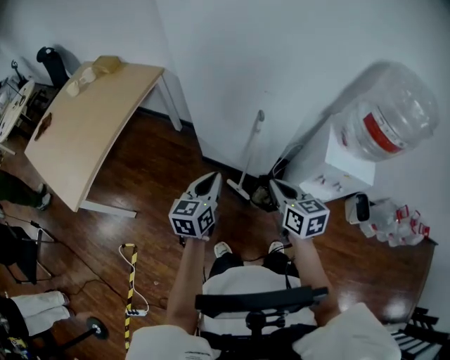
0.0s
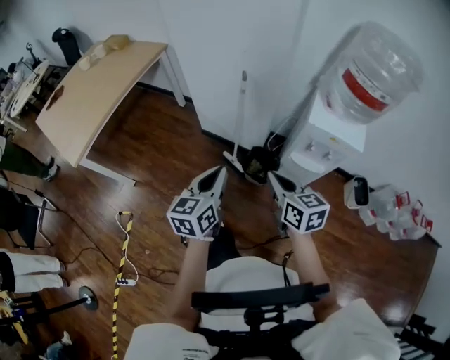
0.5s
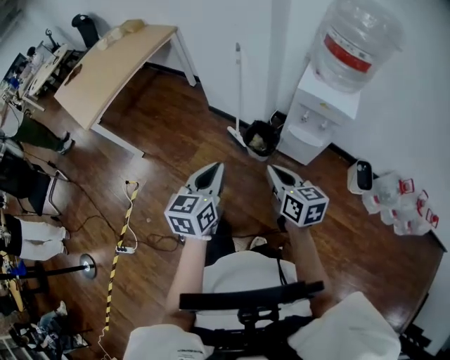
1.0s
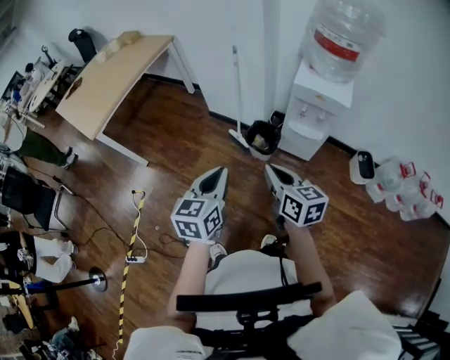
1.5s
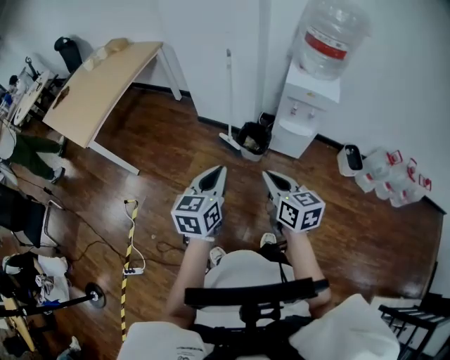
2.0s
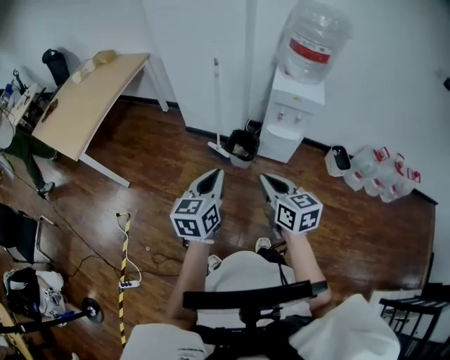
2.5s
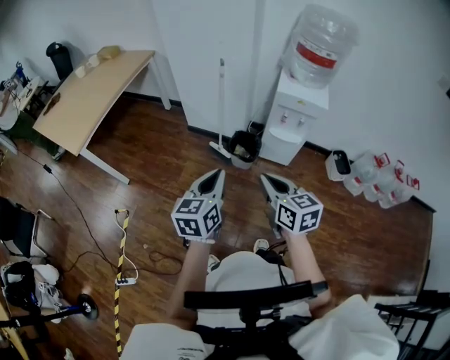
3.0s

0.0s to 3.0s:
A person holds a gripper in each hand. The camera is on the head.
0.0s to 1.5s: Both grippers move backward, about 40 cm.
1.5s to 3.0s: The left gripper goes approximately 5 cm to the left, while the right gripper moves backward and to the left, approximately 10 cm.

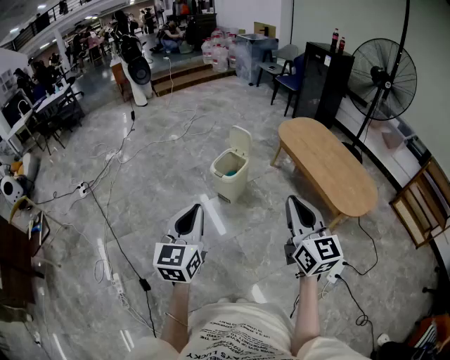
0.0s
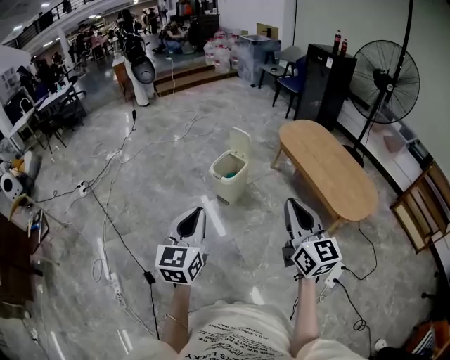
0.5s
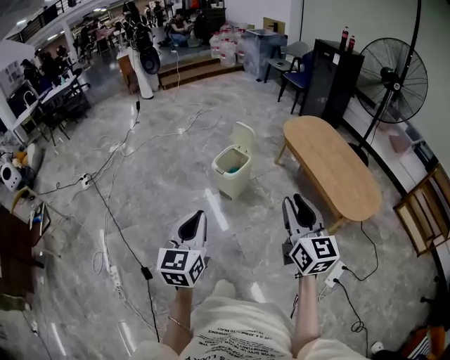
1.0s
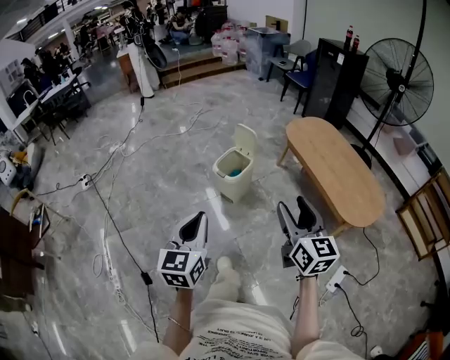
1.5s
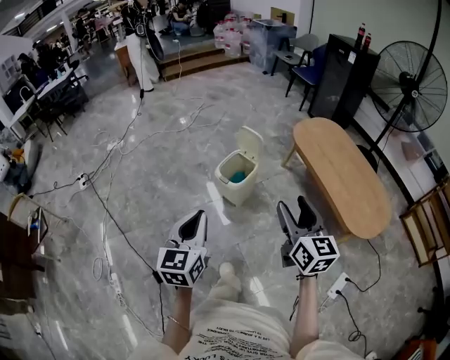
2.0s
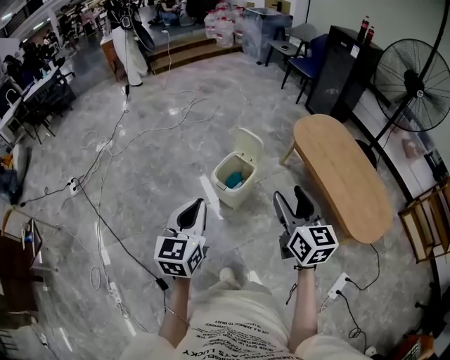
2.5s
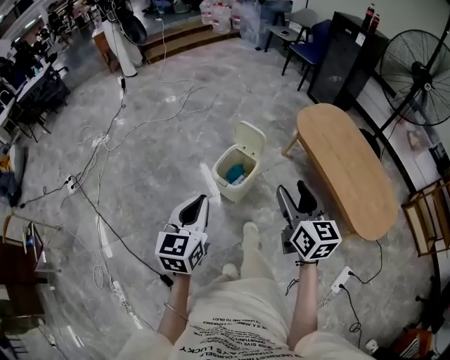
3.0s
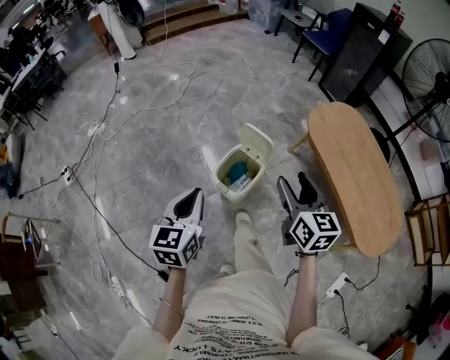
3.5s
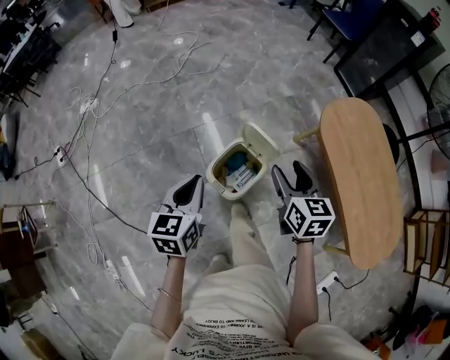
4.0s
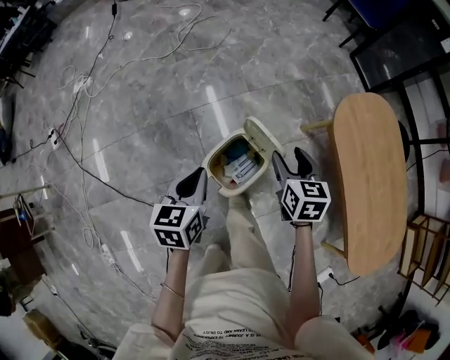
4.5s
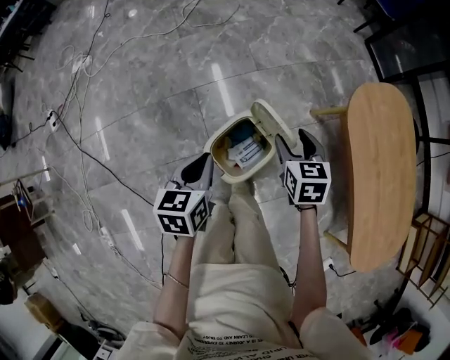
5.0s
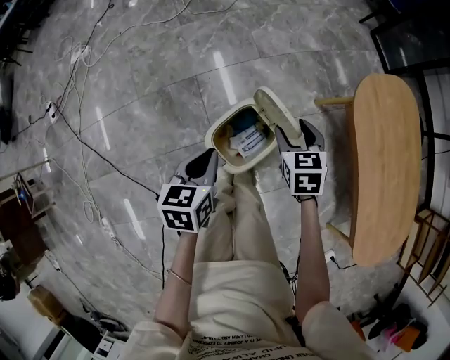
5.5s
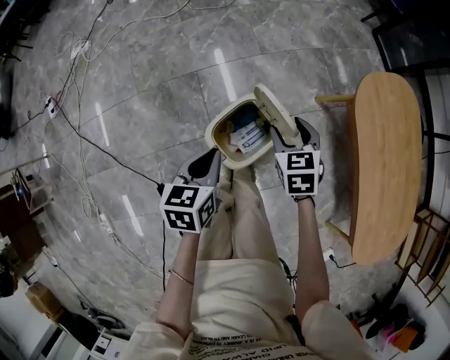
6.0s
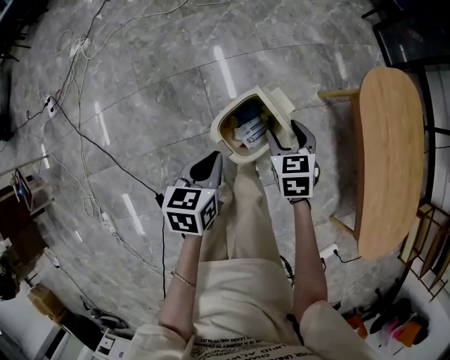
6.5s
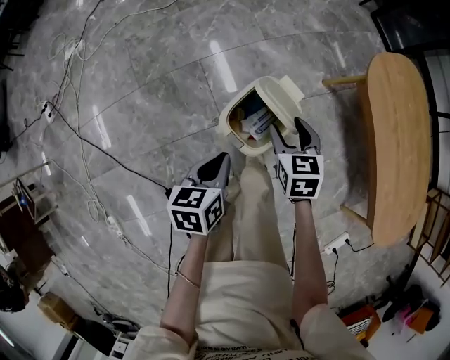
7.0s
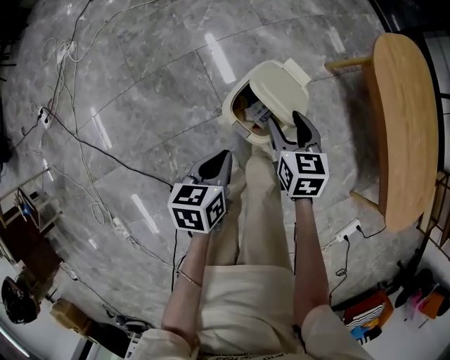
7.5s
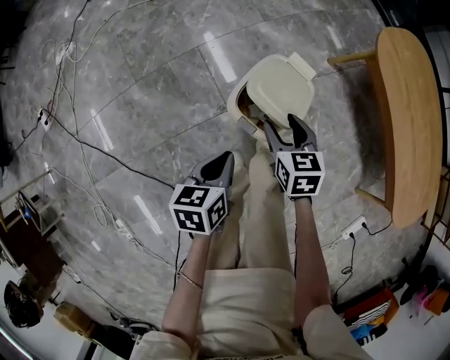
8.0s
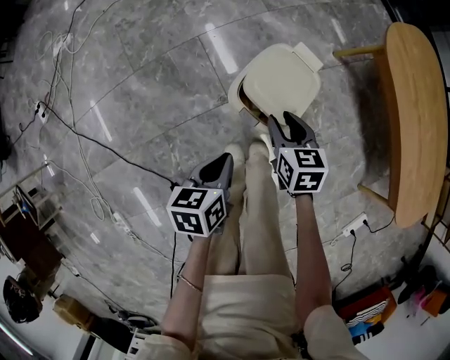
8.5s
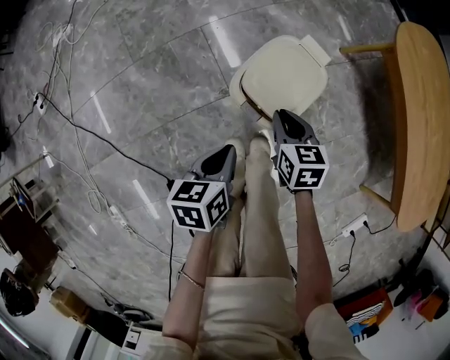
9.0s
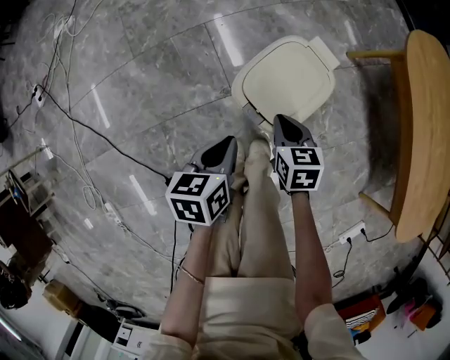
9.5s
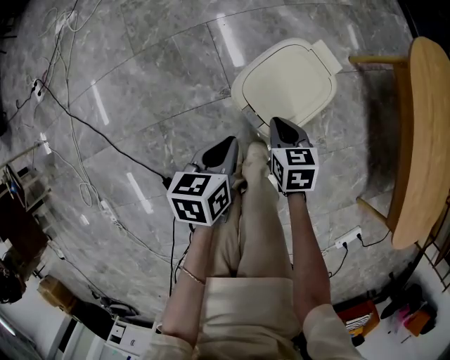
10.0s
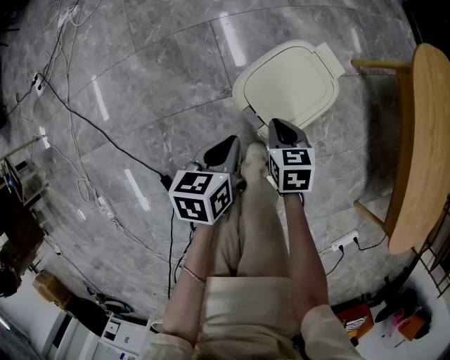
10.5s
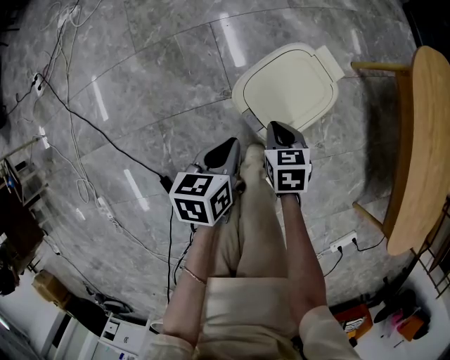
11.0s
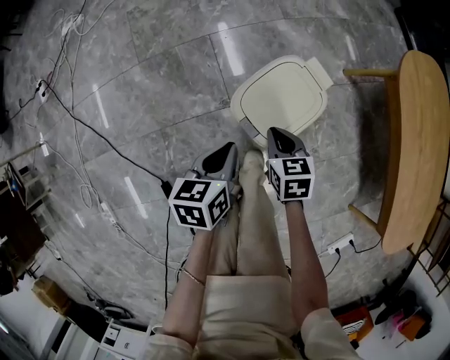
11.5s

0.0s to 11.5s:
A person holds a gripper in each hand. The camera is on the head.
0.0s to 2.0s: The right gripper heads forward, covering about 15 cm, and opens, while the left gripper shifts about 15 cm forward and downward.
2.0s to 4.0s: The two grippers travel together, forward, about 40 cm. The left gripper rotates about 20 degrees; the right gripper changes its angle by some 20 degrees.
4.0s to 6.0s: The left gripper is displaced downward by roughly 15 cm, while the right gripper moves downward and forward, some 20 cm, and swivels about 30 degrees.
6.0s to 7.5s: The left gripper goes roughly 10 cm backward and downward. Meanwhile the right gripper shifts approximately 10 cm backward and to the left, and swivels approximately 20 degrees.
7.5s to 9.5s: The left gripper shifts roughly 10 cm downward; the right gripper is displaced downward and backward by approximately 15 cm, and closes its fingers.
9.5s to 11.5s: The grippers stay close to where they were, moving slightly.

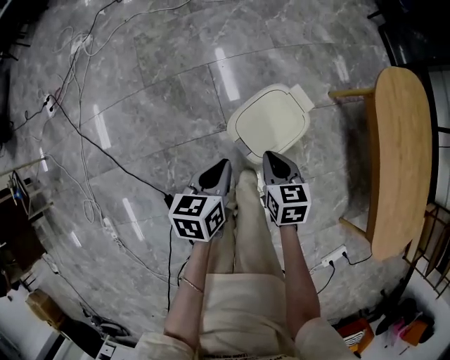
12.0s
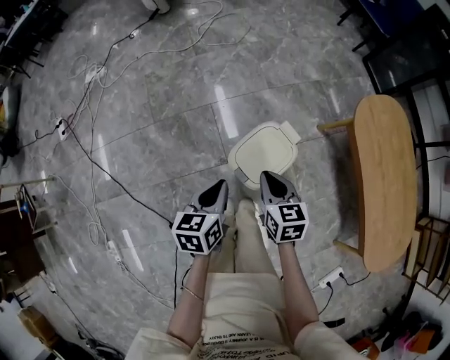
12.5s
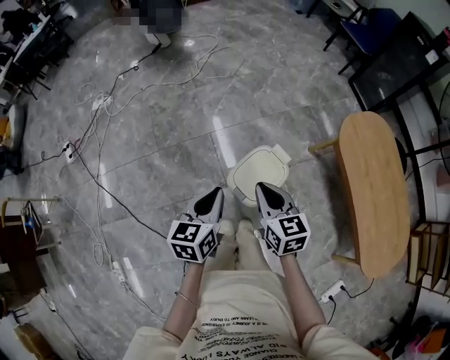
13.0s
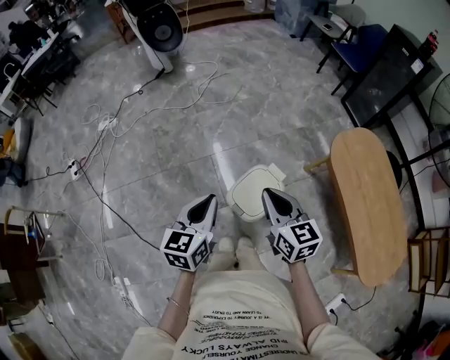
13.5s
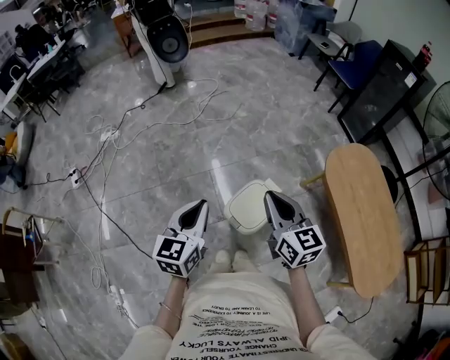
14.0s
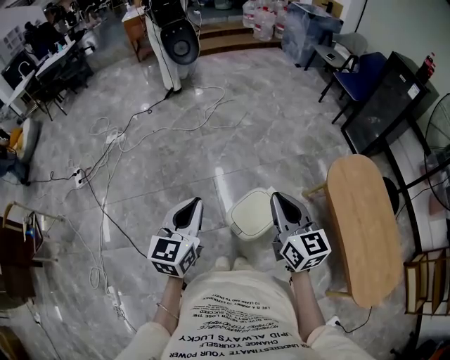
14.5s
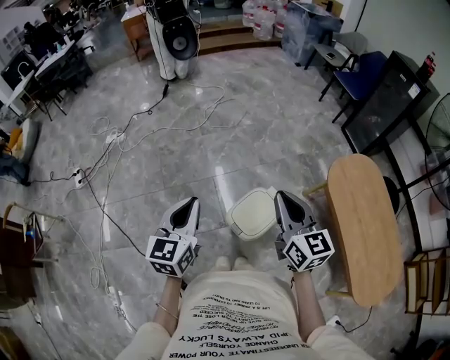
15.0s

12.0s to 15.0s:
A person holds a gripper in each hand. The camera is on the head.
12.0s to 13.5s: Both grippers move upward, roughly 25 cm. The right gripper changes its angle by some 30 degrees. The left gripper rotates some 30 degrees.
13.5s to 15.0s: The two grippers go about 10 cm upward.

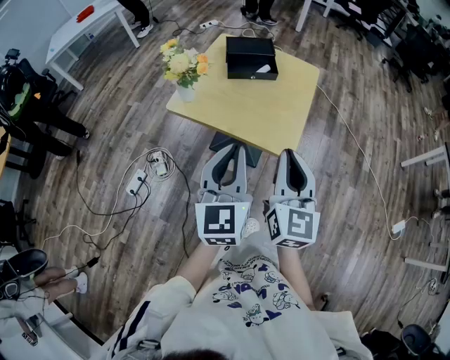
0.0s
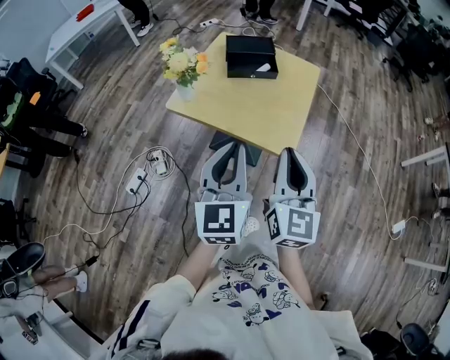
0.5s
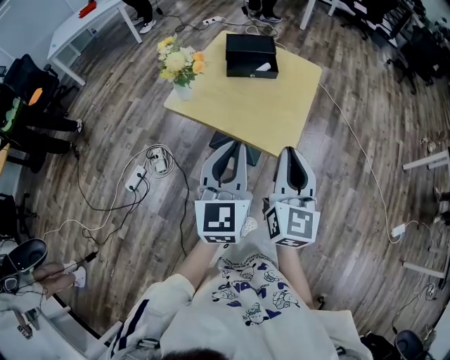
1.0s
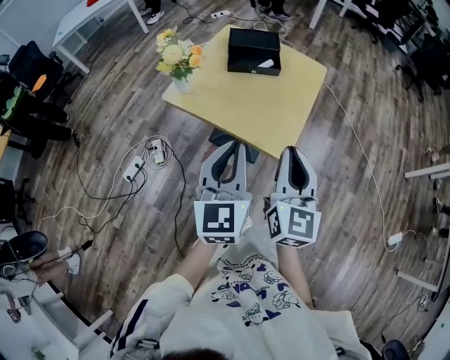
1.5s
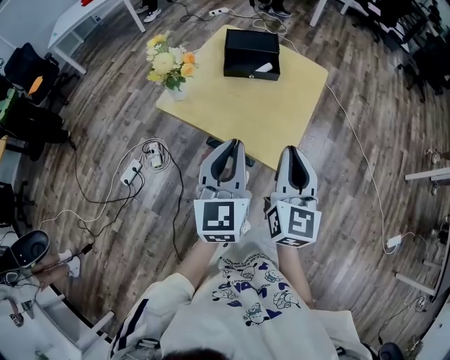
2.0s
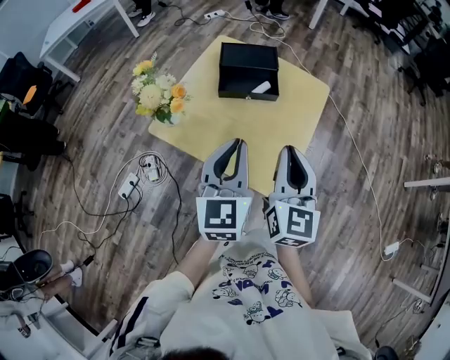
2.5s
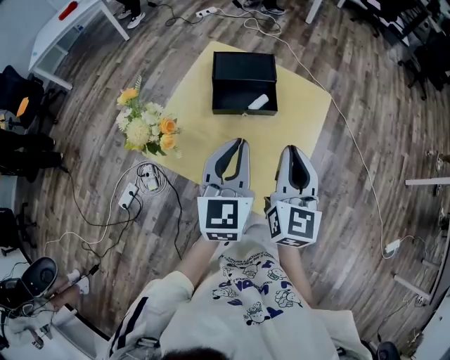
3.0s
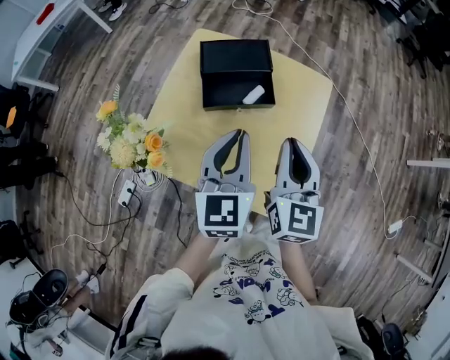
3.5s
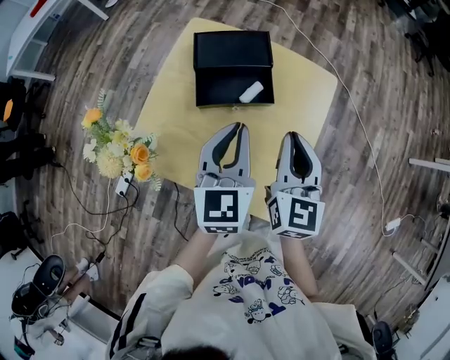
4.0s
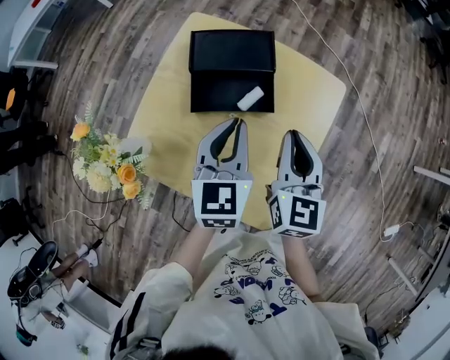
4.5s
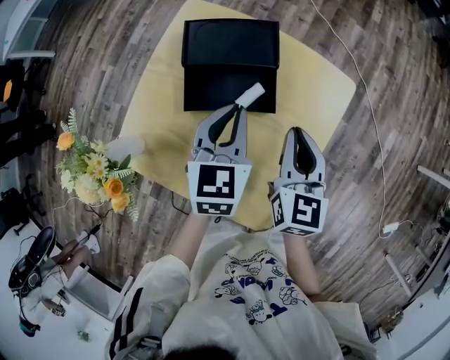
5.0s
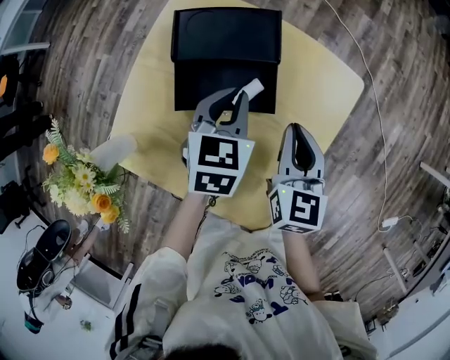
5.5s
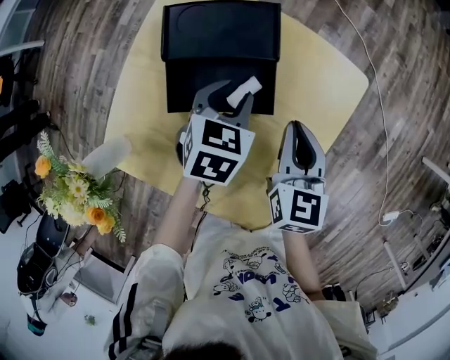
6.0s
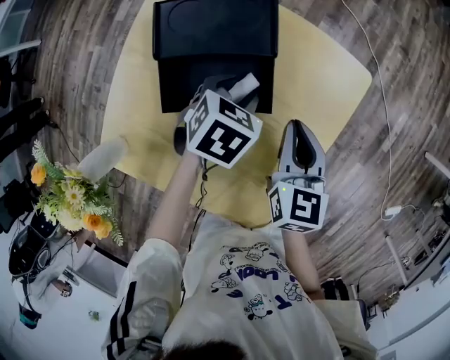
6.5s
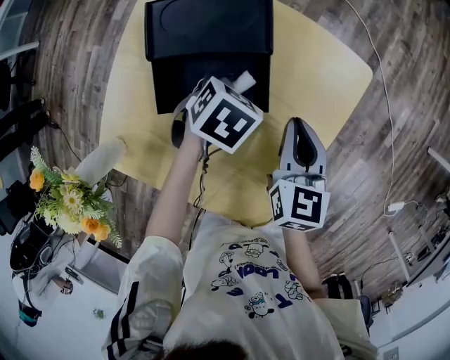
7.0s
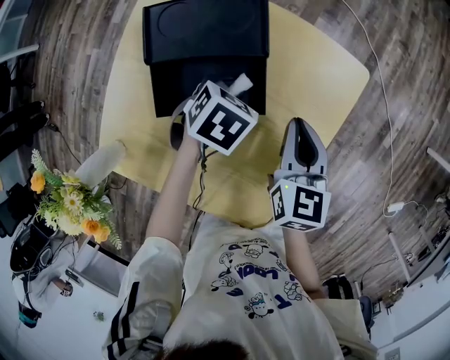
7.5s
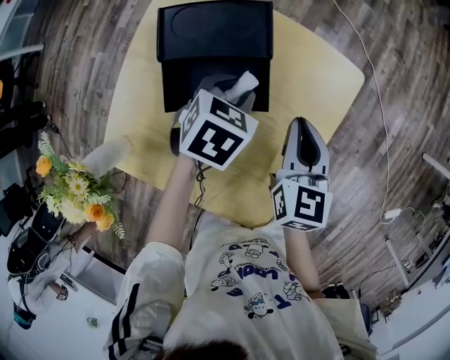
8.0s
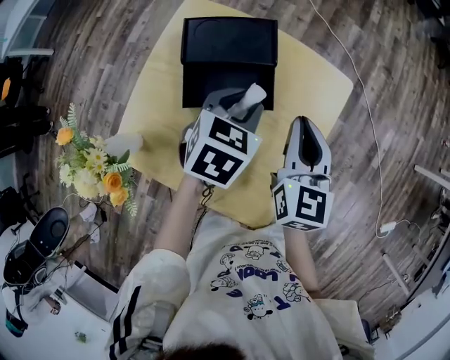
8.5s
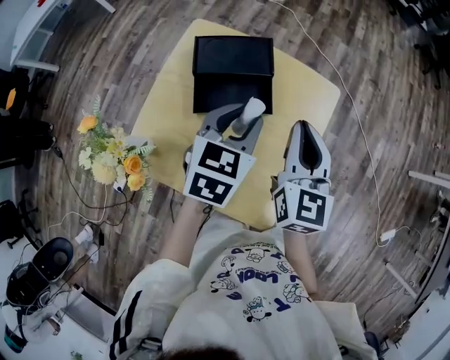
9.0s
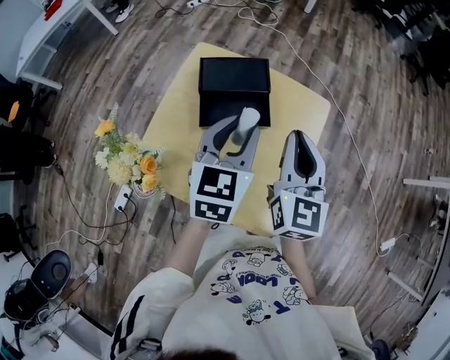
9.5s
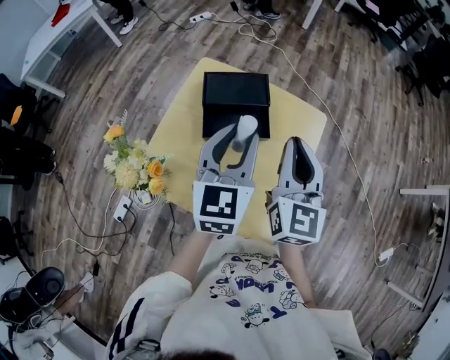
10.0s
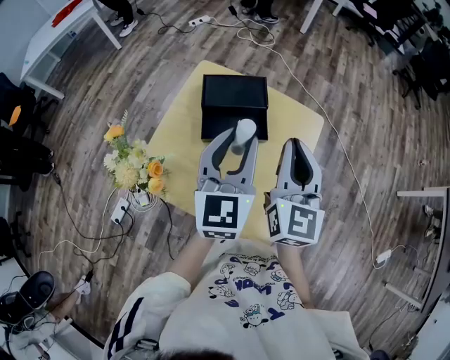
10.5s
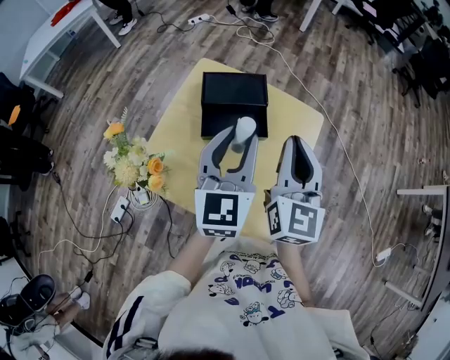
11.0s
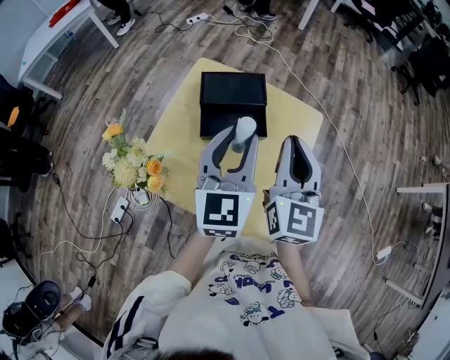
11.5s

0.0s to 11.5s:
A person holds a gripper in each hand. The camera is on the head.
0.0s to 2.0s: Both grippers move forward, roughly 10 cm.
2.0s to 4.0s: The grippers both shift forward by about 30 cm.
4.0s to 6.0s: Both grippers move downward and forward, about 20 cm. The left gripper angles its fingers downward, by roughly 30 degrees, and opens its fingers.
6.0s to 7.5s: The left gripper shifts some 5 cm downward, and turns by about 20 degrees.
7.5s to 9.5s: Both grippers move upward, some 25 cm. The right gripper changes its angle by about 30 degrees; the left gripper angles its fingers upward, by roughly 50 degrees.
9.5s to 11.5s: The left gripper shifts by about 5 cm.
